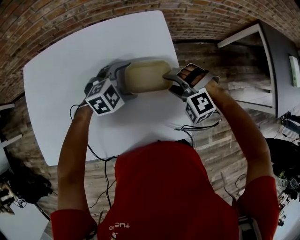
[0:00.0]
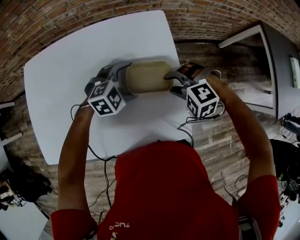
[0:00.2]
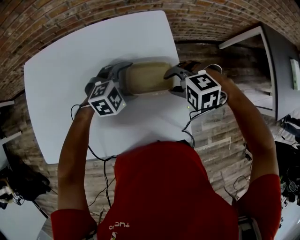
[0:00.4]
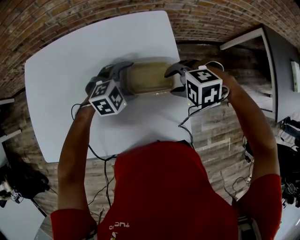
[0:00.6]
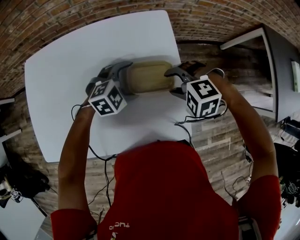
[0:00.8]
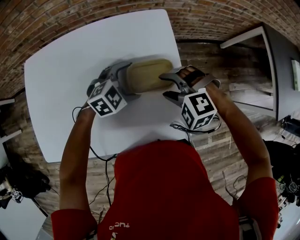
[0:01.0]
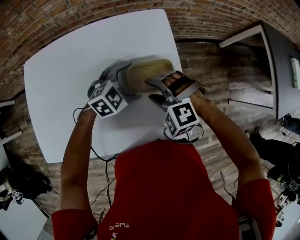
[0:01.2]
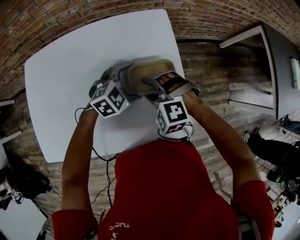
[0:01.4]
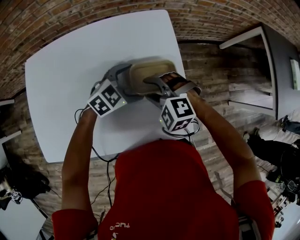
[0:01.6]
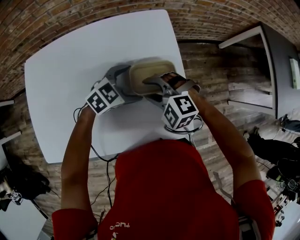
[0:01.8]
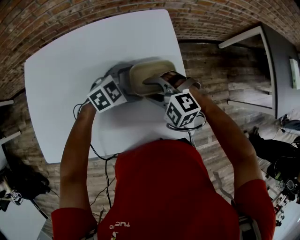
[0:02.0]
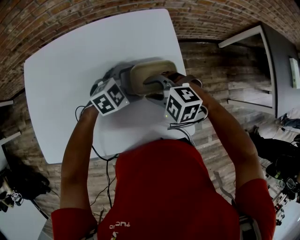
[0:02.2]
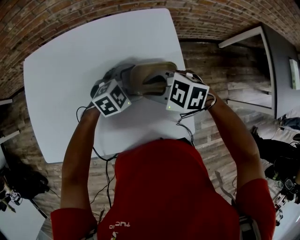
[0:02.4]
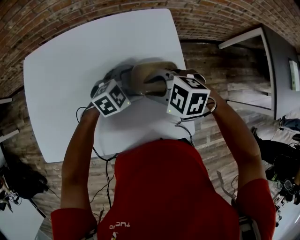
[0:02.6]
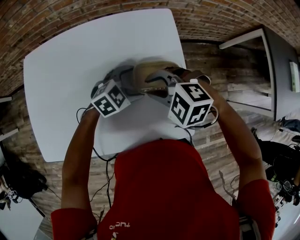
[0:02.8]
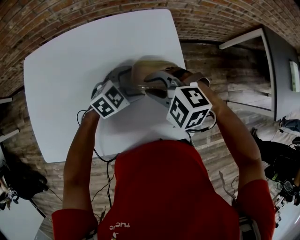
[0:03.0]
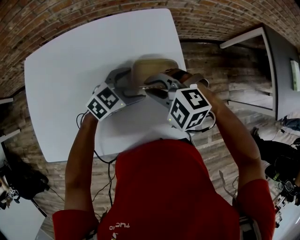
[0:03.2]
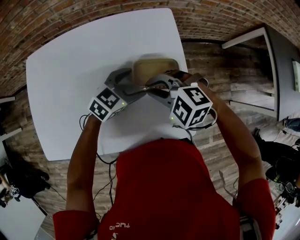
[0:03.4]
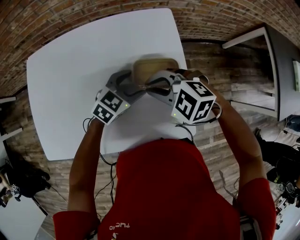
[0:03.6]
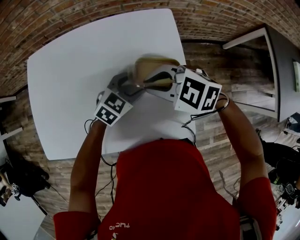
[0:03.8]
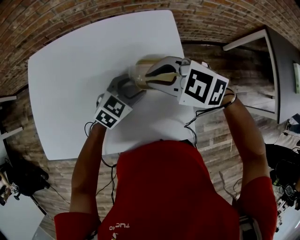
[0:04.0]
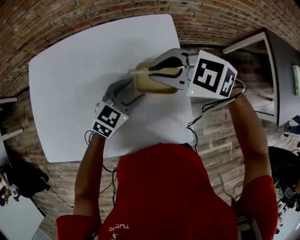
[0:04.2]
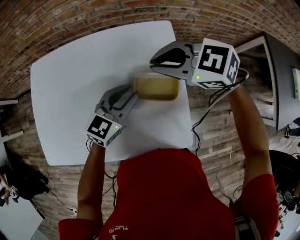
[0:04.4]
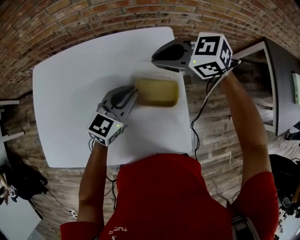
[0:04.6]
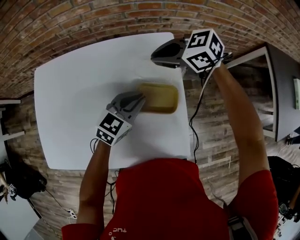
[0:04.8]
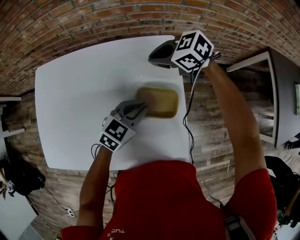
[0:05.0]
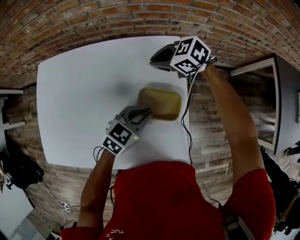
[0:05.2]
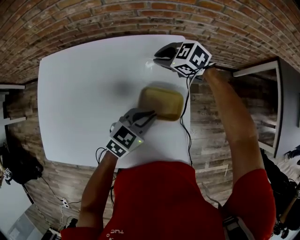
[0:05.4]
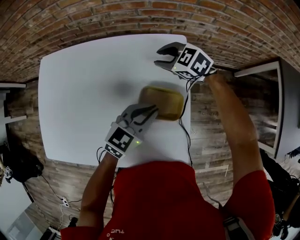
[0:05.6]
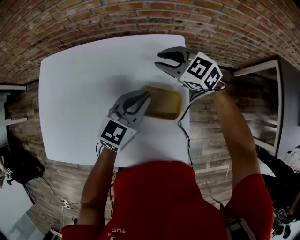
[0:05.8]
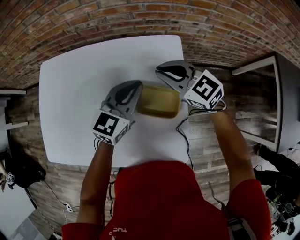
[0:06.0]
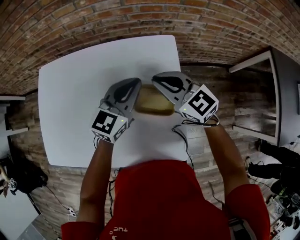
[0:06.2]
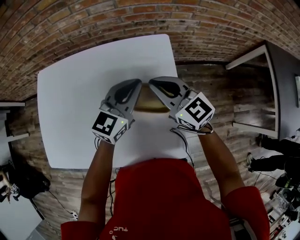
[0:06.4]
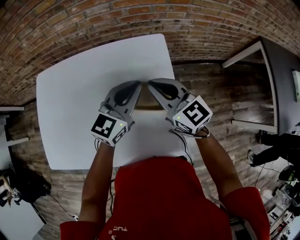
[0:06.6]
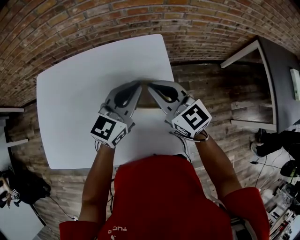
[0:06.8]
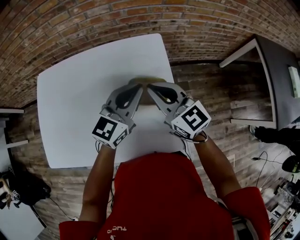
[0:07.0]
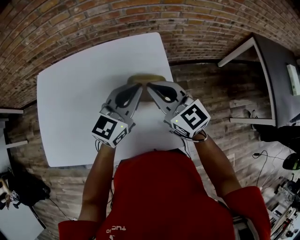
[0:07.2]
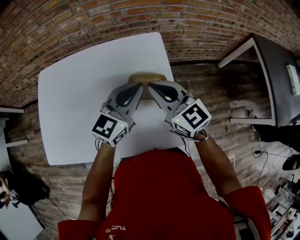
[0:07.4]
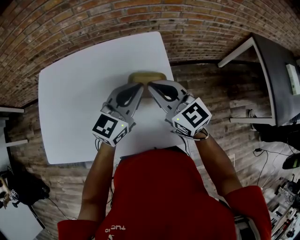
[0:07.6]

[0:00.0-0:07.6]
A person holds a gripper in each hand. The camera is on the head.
0:00.0 to 0:01.6: The right gripper shifts by approximately 10 cm, and changes its angle by some 20 degrees.
0:01.6 to 0:03.0: The right gripper is displaced upward by about 5 cm.
0:03.0 to 0:04.6: The left gripper heads upward, covering about 10 cm, changes its angle by roughly 40 degrees, and closes; the right gripper shifts by some 15 cm, and rotates some 40 degrees.
0:04.6 to 0:06.0: The left gripper travels downward and back again, some 5 cm each way; the right gripper moves some 10 cm downward and comes back, and swivels some 20 degrees.
0:06.0 to 0:07.6: Both grippers travel together backward and upward, roughly 15 cm. The right gripper changes its angle by approximately 30 degrees.

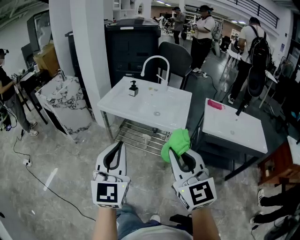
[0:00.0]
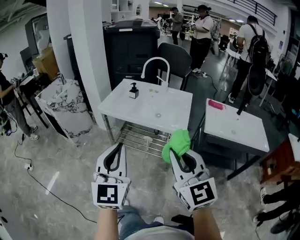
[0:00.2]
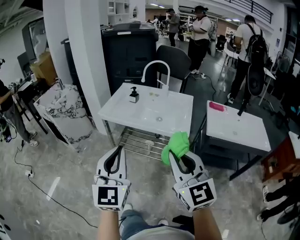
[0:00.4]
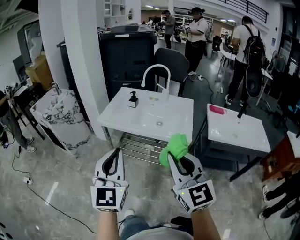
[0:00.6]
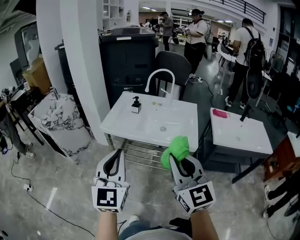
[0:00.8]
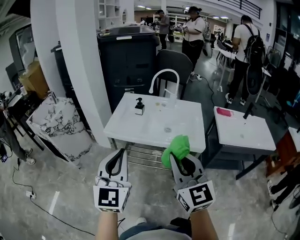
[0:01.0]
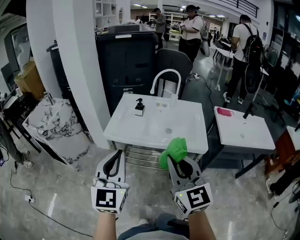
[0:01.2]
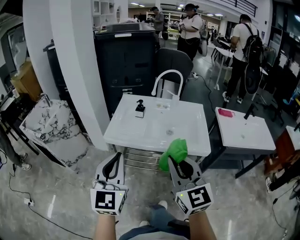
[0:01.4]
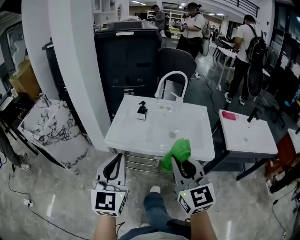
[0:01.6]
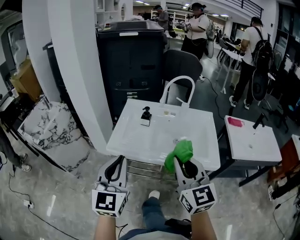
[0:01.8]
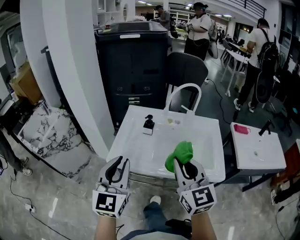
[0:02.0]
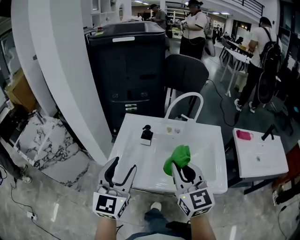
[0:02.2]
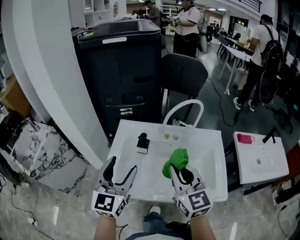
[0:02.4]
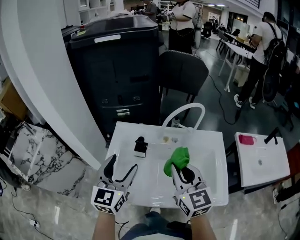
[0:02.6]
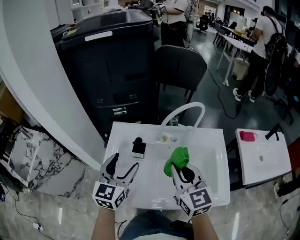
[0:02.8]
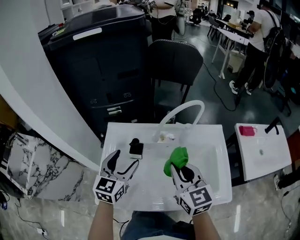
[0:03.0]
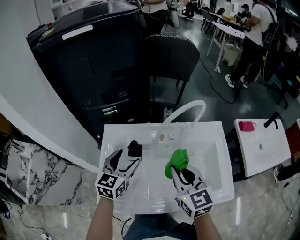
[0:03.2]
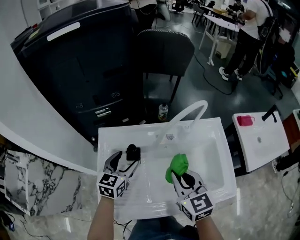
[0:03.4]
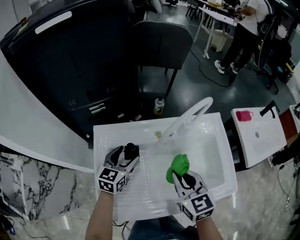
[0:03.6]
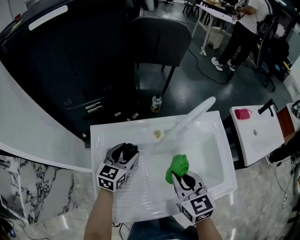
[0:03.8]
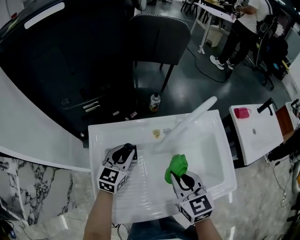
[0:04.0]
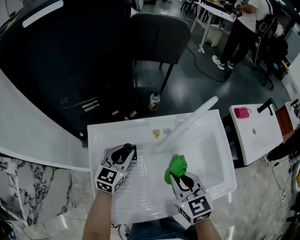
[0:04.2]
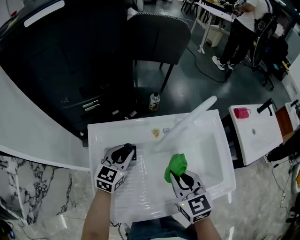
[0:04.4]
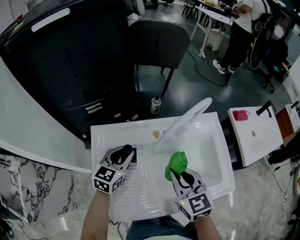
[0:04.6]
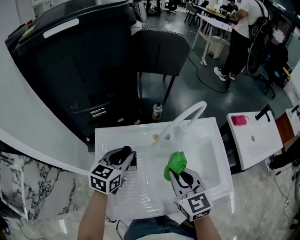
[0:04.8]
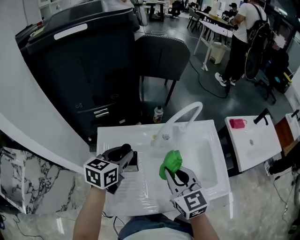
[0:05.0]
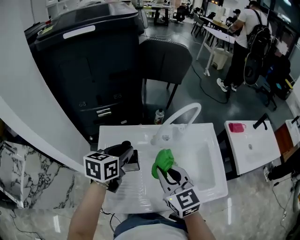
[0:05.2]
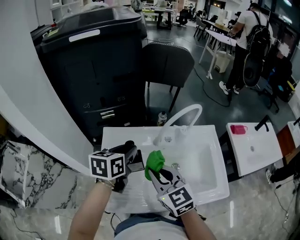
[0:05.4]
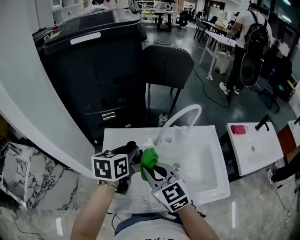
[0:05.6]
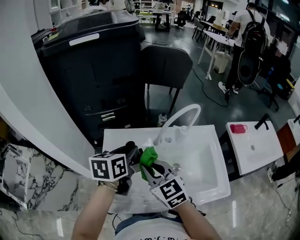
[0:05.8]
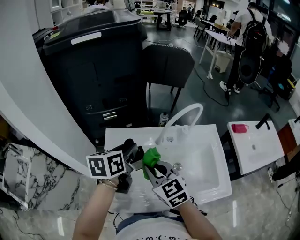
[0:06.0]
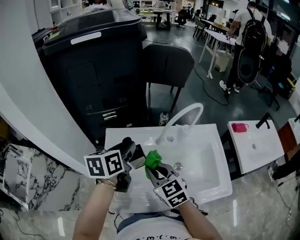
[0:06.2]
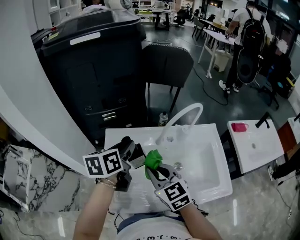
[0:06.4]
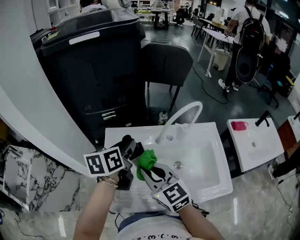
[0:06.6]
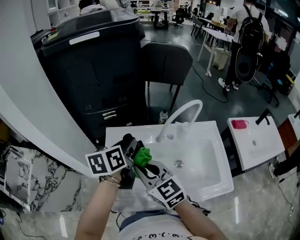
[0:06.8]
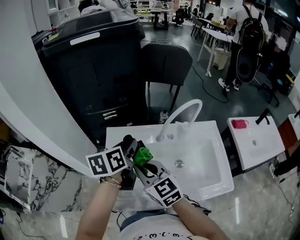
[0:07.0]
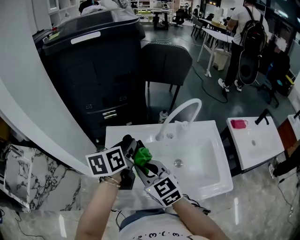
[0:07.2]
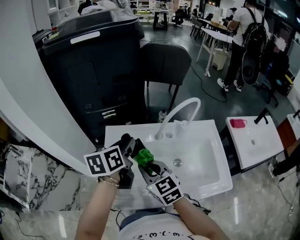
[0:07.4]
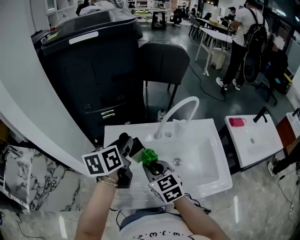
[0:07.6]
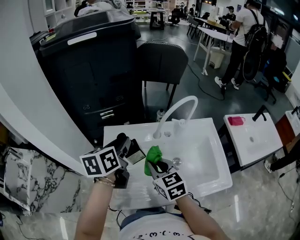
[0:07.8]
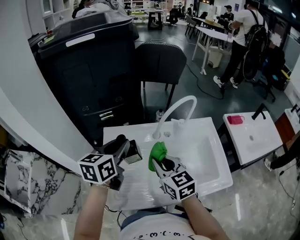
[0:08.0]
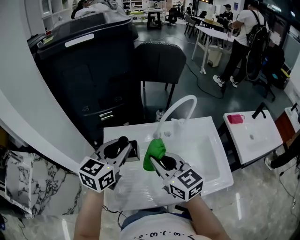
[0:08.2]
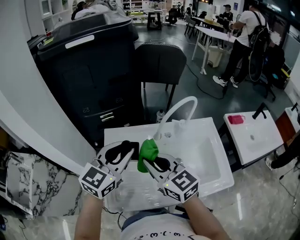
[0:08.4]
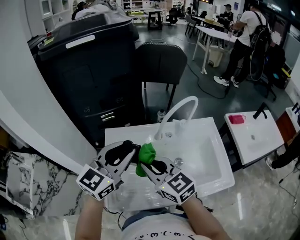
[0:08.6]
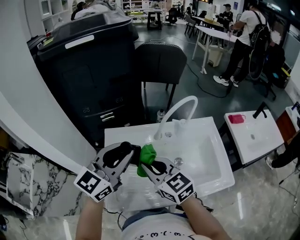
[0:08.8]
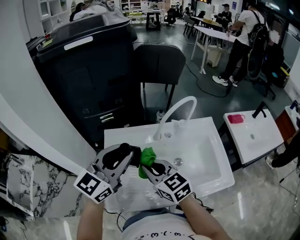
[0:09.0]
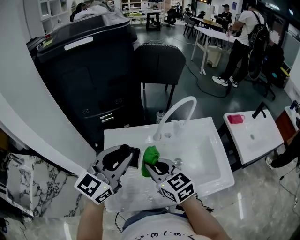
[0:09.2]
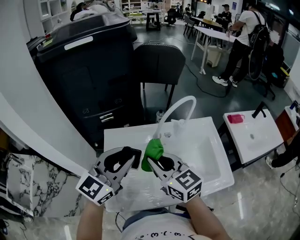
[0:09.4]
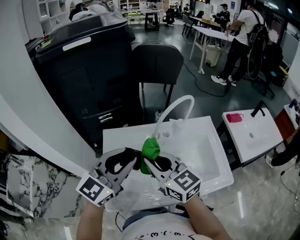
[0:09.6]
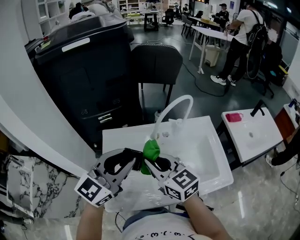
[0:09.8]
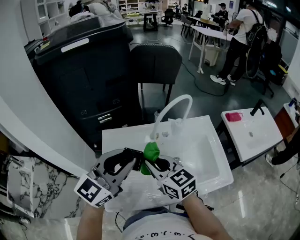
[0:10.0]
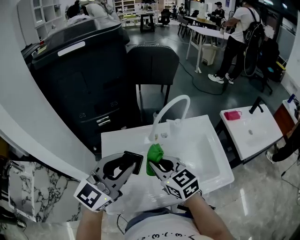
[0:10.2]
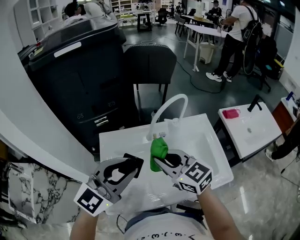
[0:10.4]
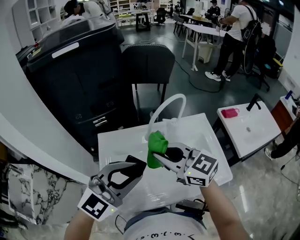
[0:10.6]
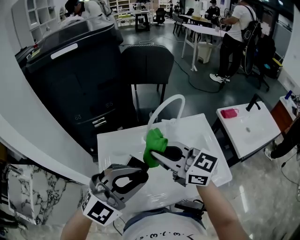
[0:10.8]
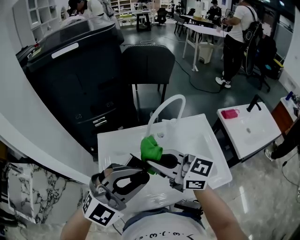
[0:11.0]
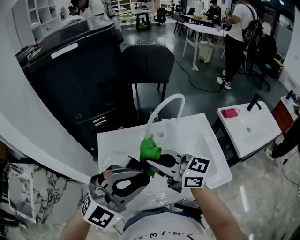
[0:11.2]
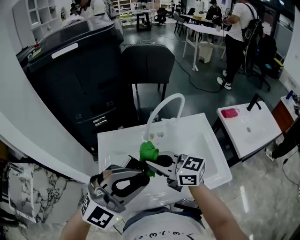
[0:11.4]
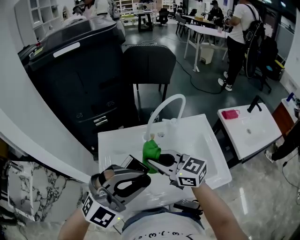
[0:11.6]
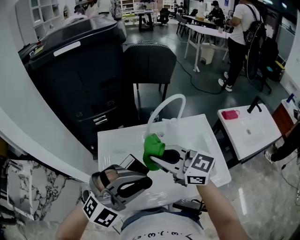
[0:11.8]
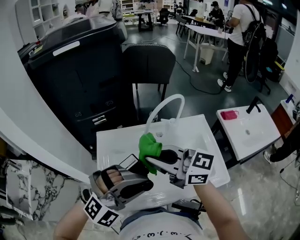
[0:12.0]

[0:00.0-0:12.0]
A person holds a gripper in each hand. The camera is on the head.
0:00.0 to 0:01.6: Both grippers move forward and to the left, roughly 30 cm.
0:01.6 to 0:03.0: The grippers both shift forward by some 35 cm. The left gripper turns by approximately 30 degrees, and opens.
0:03.0 to 0:04.4: The right gripper moves downward, approximately 10 cm. The left gripper goes roughly 15 cm downward and forward, and closes its fingers.
0:04.4 to 0:06.0: The left gripper heads upward, covering some 15 cm, and changes its angle by some 30 degrees. Meanwhile the right gripper shifts about 10 cm to the left and upward, and changes its angle by approximately 20 degrees.
0:06.0 to 0:07.6: There are only small adjustments of the grippers.
0:07.6 to 0:09.0: The left gripper is displaced upward and backward by approximately 10 cm, and turns by approximately 50 degrees.
0:09.0 to 0:10.4: The right gripper moves up and down over about 5 cm, changing direction 2 times. Meanwhile the left gripper moves backward, roughly 5 cm.
0:10.4 to 0:12.0: The right gripper goes up and down, approximately 5 cm each way, reversing 2 times, and rotates roughly 30 degrees, while the left gripper heads backward and to the right, covering some 10 cm, and rotates around the line of its fingers by about 40 degrees, clockwise from behind.

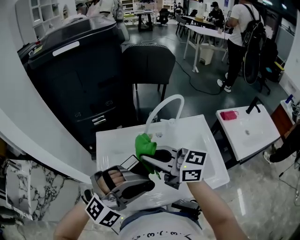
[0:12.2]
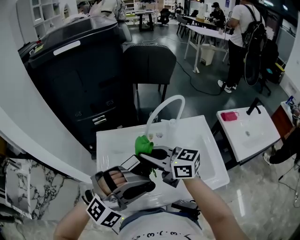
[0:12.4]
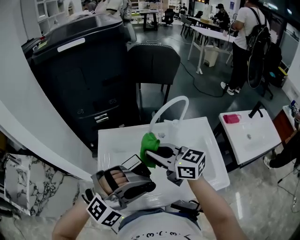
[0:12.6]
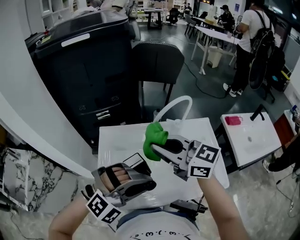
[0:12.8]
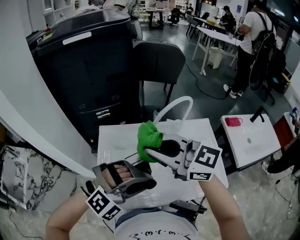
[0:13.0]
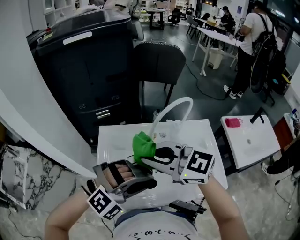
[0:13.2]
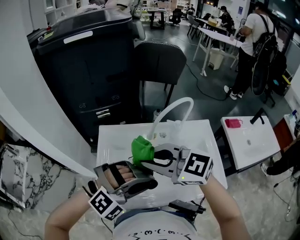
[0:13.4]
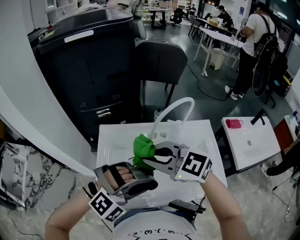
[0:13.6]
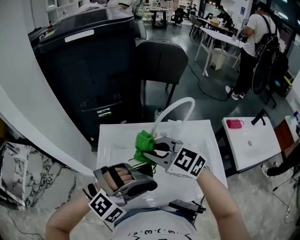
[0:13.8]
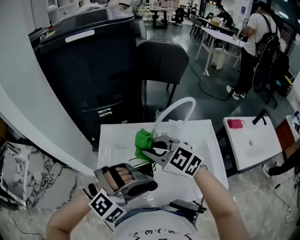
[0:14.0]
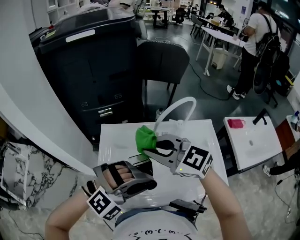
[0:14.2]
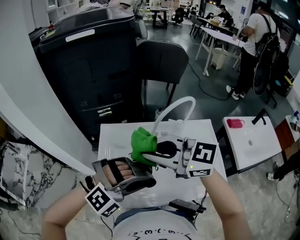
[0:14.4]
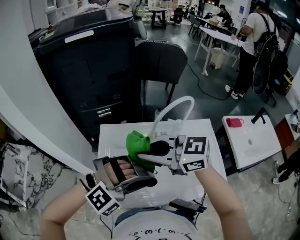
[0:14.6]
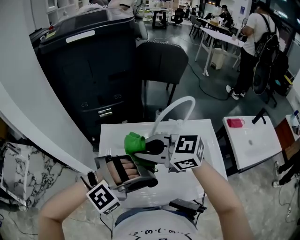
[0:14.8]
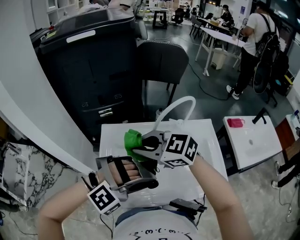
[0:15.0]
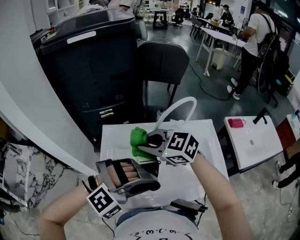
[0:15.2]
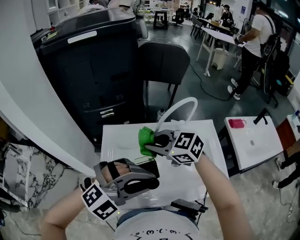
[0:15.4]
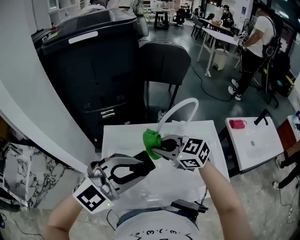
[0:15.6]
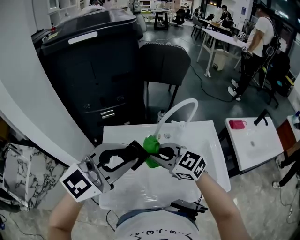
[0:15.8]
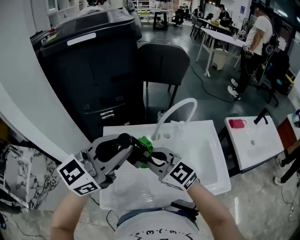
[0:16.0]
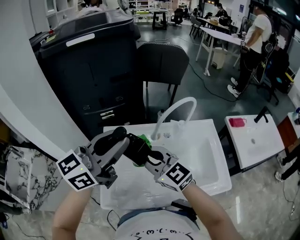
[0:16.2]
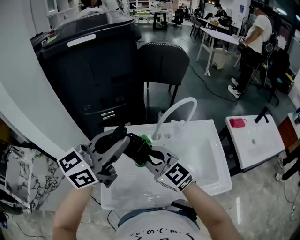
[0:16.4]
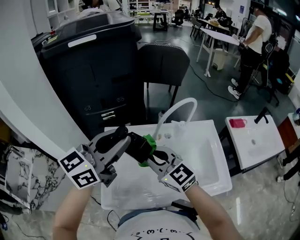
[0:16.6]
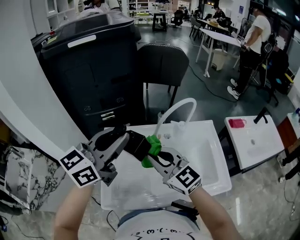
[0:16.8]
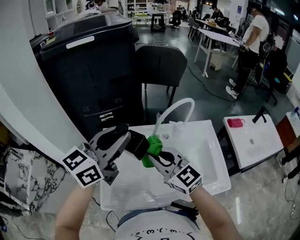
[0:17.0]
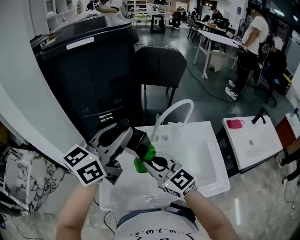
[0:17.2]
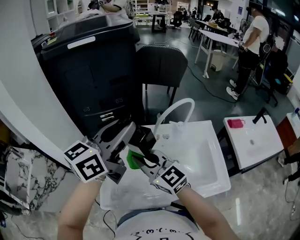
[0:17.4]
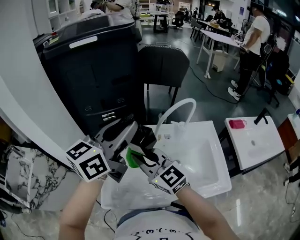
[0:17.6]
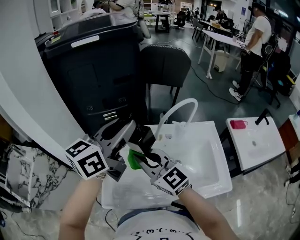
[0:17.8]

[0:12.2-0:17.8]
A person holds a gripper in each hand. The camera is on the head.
0:12.2 to 0:13.6: The right gripper moves up and down over some 10 cm, changing direction 2 times, and changes its angle by approximately 40 degrees.
0:13.6 to 0:15.0: The right gripper goes up and down, roughly 10 cm each way, reversing 2 times.
0:15.0 to 0:16.4: The right gripper turns by some 30 degrees. Meanwhile the left gripper moves approximately 20 cm, and rolls counterclockwise, seen from behind, by roughly 90 degrees.
0:16.4 to 0:17.8: The grippers stay close to where they were, moving slightly.
